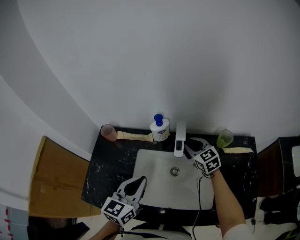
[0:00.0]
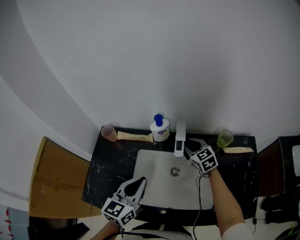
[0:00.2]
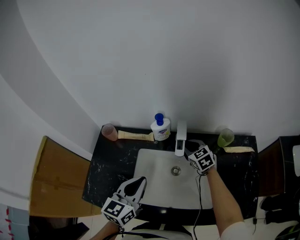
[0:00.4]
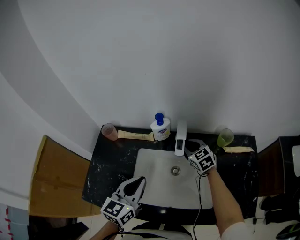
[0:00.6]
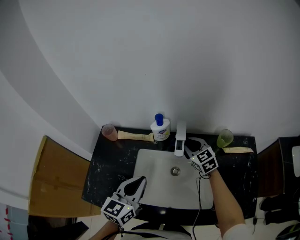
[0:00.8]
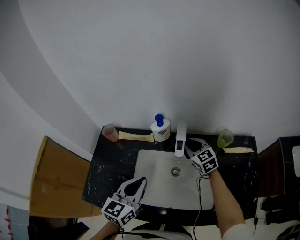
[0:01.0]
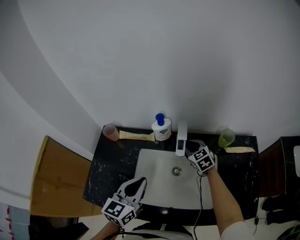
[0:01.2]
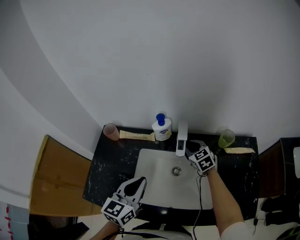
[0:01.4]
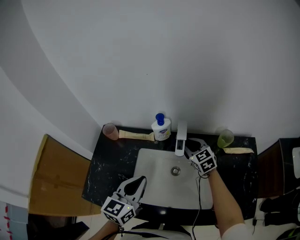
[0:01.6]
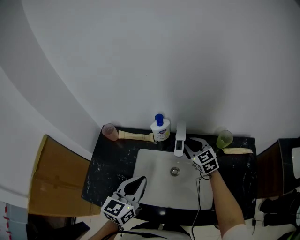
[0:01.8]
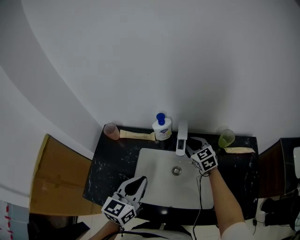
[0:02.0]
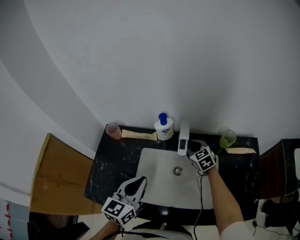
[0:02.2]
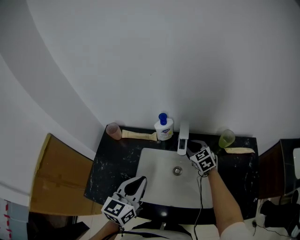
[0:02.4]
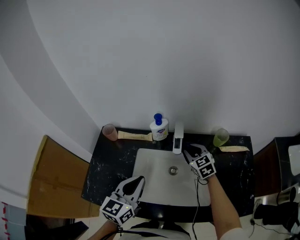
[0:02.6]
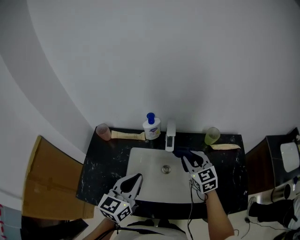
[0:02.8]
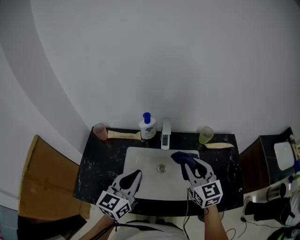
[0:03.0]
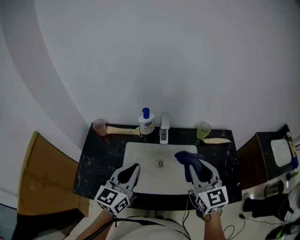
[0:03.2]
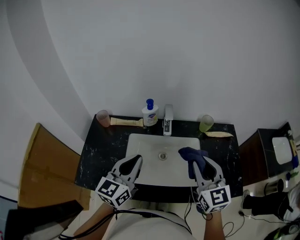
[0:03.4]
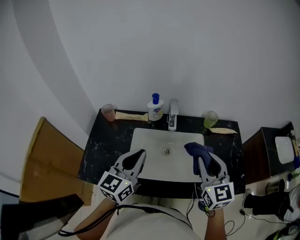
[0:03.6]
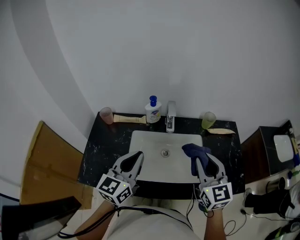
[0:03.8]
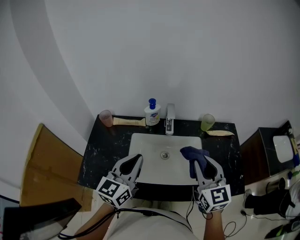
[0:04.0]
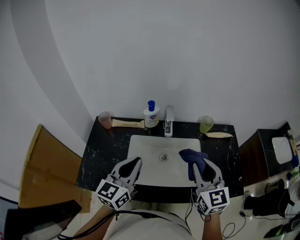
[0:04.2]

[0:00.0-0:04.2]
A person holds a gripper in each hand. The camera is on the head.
0:00.0 to 0:01.4: The right gripper goes up and down, about 5 cm each way, reversing 2 times.
0:01.4 to 0:02.8: The right gripper goes approximately 15 cm backward and upward.
0:02.8 to 0:04.2: The left gripper moves about 5 cm, while the right gripper is displaced backward and upward by some 20 cm.

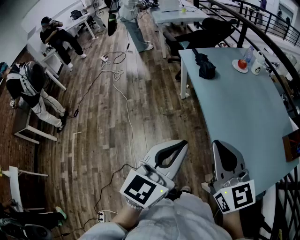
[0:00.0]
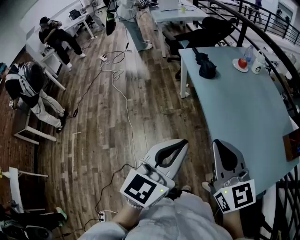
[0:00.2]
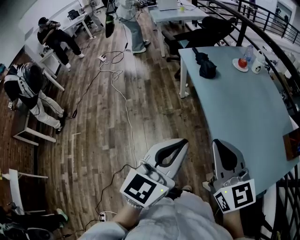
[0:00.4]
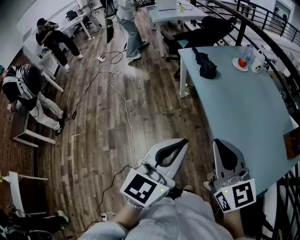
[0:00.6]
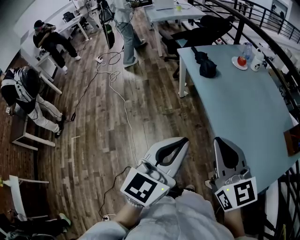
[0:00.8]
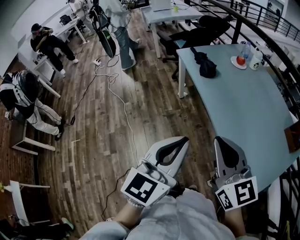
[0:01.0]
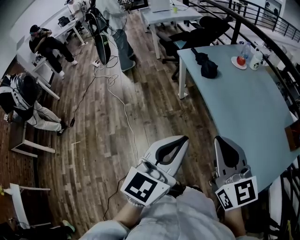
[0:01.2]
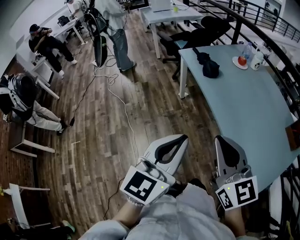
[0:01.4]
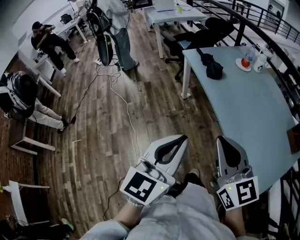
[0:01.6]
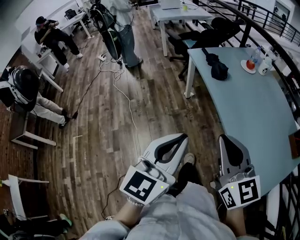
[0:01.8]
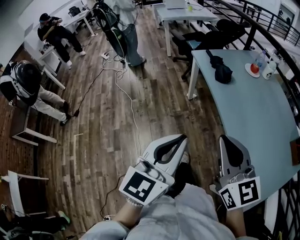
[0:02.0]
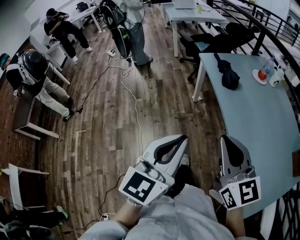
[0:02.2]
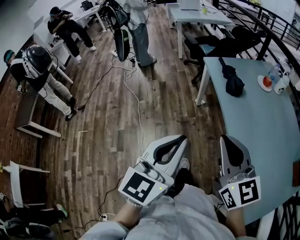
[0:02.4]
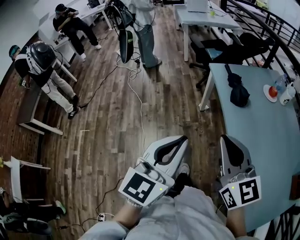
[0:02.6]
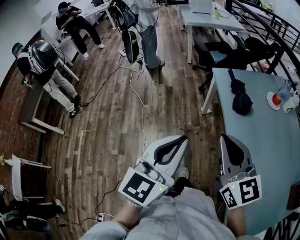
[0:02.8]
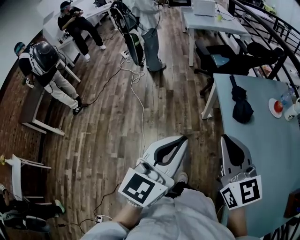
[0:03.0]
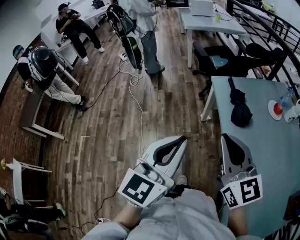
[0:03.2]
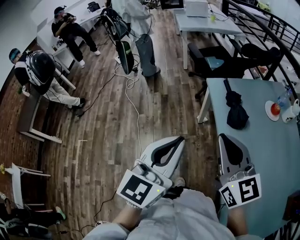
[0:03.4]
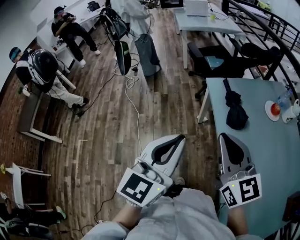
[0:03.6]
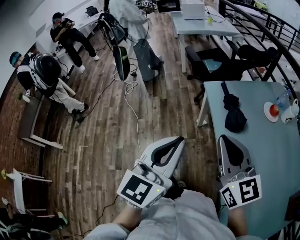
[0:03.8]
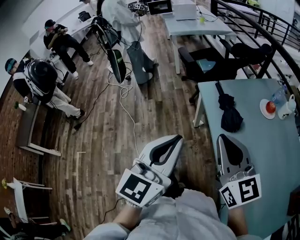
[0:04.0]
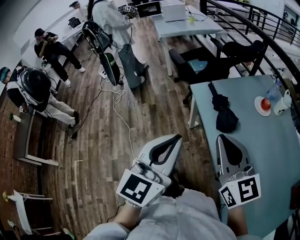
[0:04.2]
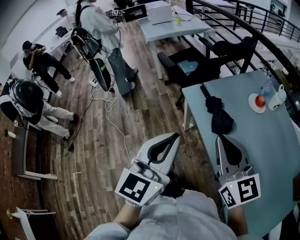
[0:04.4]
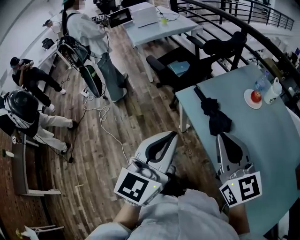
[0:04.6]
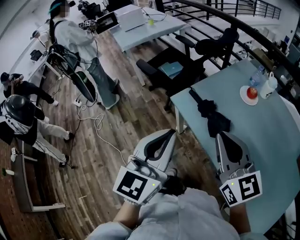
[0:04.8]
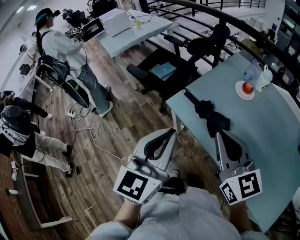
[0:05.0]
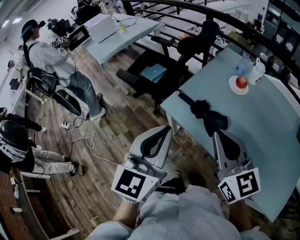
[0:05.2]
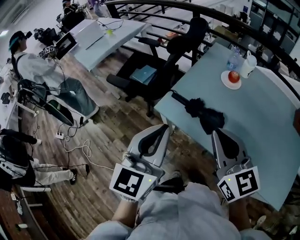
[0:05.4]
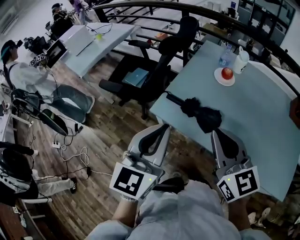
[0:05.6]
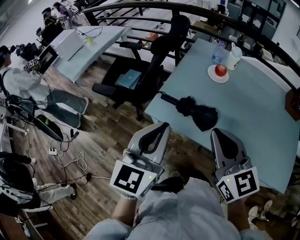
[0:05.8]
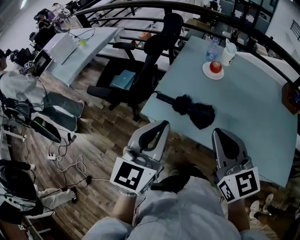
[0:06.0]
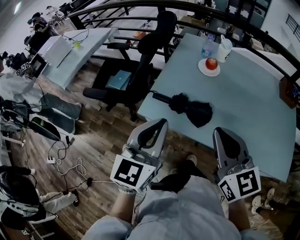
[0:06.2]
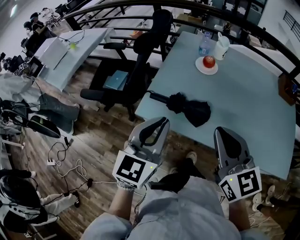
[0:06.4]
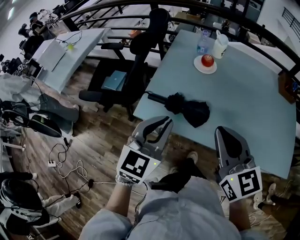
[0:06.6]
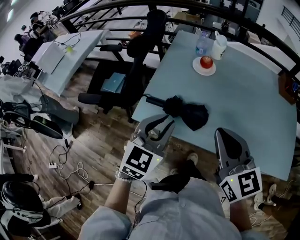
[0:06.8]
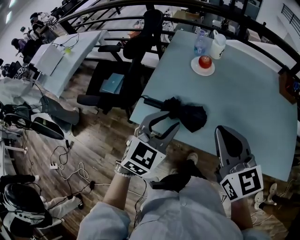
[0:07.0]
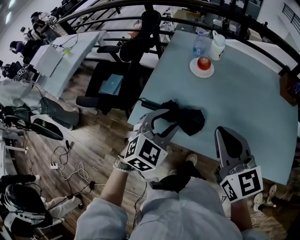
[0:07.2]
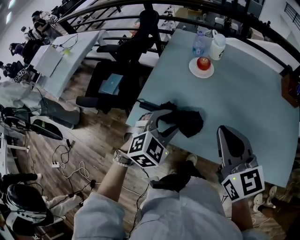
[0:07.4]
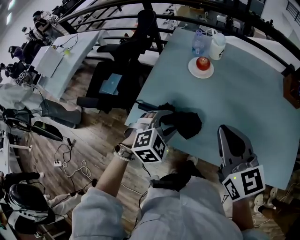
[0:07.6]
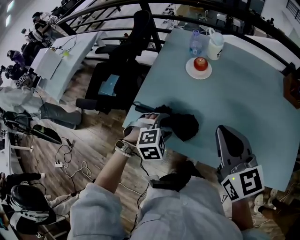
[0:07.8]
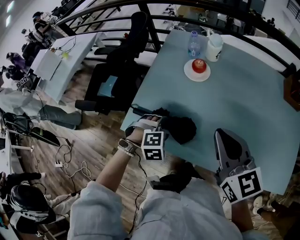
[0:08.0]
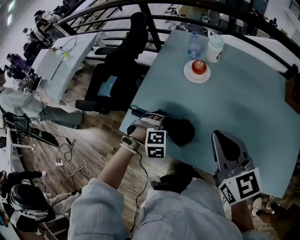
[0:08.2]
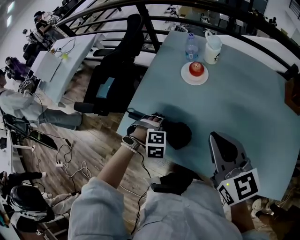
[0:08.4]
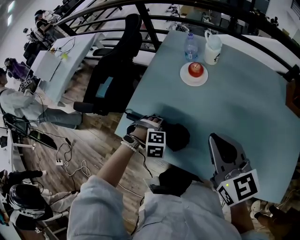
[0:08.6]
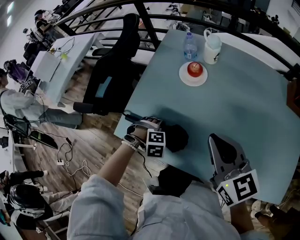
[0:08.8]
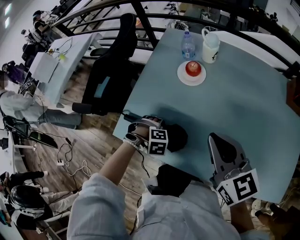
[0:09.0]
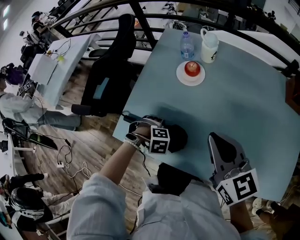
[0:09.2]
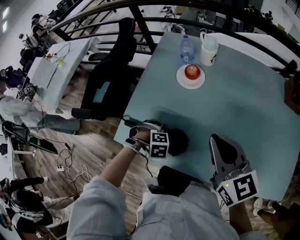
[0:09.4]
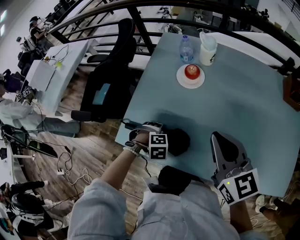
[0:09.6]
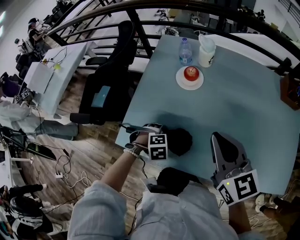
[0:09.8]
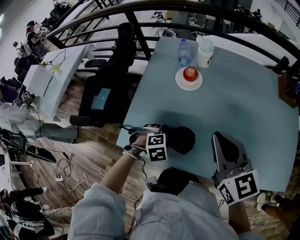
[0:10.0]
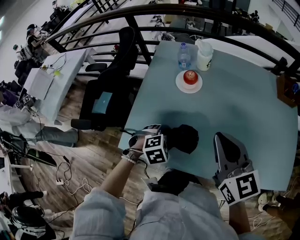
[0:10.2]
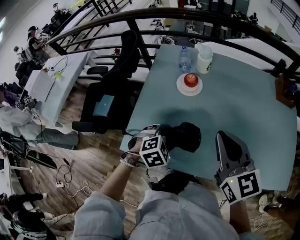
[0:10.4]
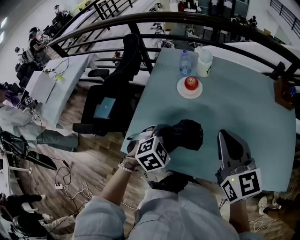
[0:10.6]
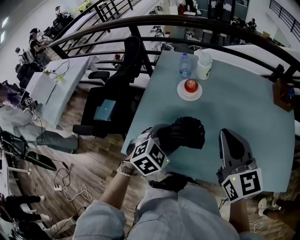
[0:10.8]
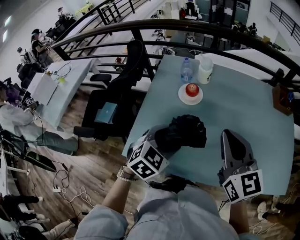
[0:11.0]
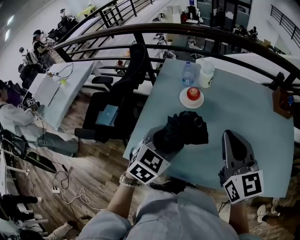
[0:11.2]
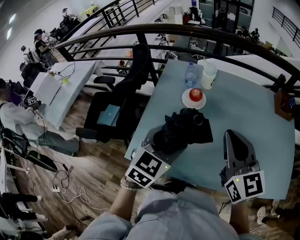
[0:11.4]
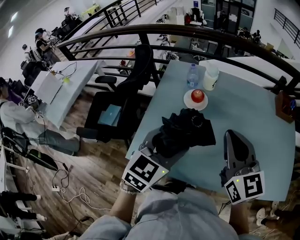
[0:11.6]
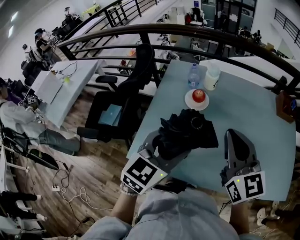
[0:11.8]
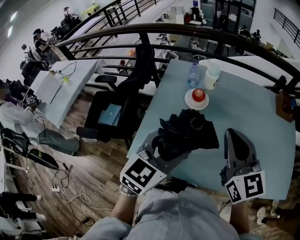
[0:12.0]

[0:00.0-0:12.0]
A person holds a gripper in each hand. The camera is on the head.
0:00.0 to 0:01.6: Both grippers travel together to the left, some 10 cm.
0:01.6 to 0:03.0: Both grippers move forward, some 25 cm.
0:03.0 to 0:04.4: The left gripper goes roughly 15 cm forward. Meanwhile the right gripper goes about 15 cm forward and to the right.
0:04.4 to 0:06.0: The left gripper shifts by some 20 cm, and rotates some 40 degrees, while the right gripper ends up approximately 10 cm from where it was, and swivels approximately 40 degrees.
0:06.0 to 0:07.6: The right gripper moves forward and to the right, some 15 cm, while the left gripper travels downward, forward and to the right by approximately 25 cm, angles its fingers downward, by some 40 degrees, and opens its fingers.
0:07.6 to 0:09.0: The right gripper ends up roughly 10 cm from where it was. The left gripper shifts approximately 15 cm downward, tips its fingers downward by roughly 40 degrees, and opens.
0:09.0 to 0:10.4: The left gripper is displaced upward by approximately 10 cm, and swivels roughly 30 degrees.
0:10.4 to 0:12.0: The right gripper shifts approximately 5 cm upward. The left gripper moves upward, about 20 cm, and tips its fingers upward by approximately 50 degrees.

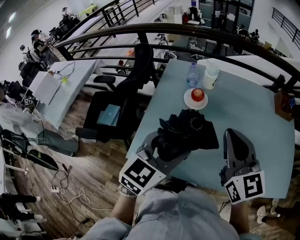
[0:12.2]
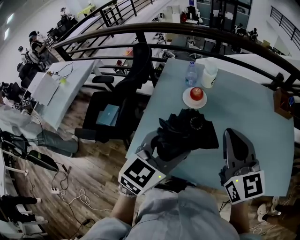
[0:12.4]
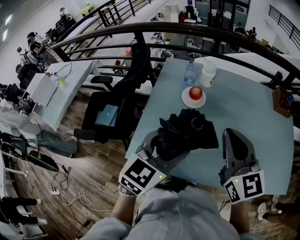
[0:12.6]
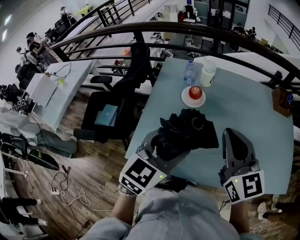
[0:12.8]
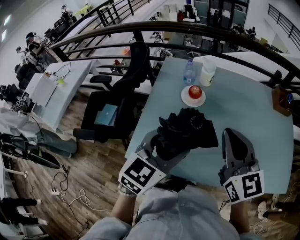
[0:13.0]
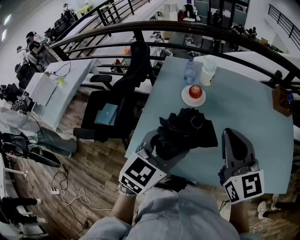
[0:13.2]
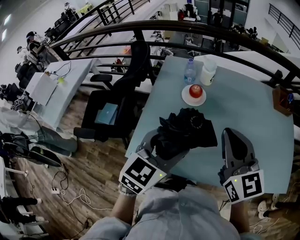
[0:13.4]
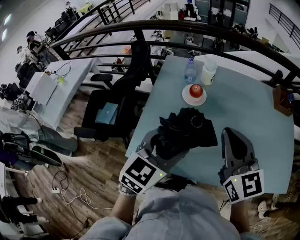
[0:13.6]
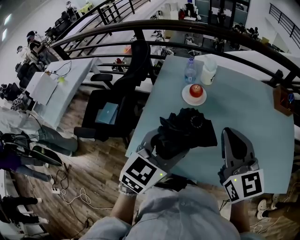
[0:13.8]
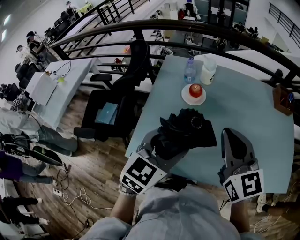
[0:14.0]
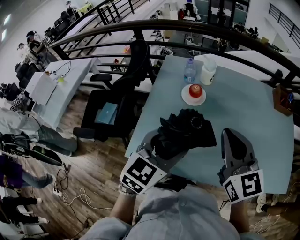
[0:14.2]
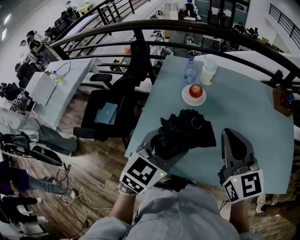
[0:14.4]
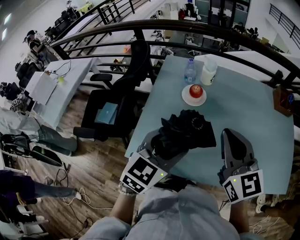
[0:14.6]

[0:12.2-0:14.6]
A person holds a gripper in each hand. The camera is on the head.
0:12.2 to 0:13.4: The two grippers keep their place.
0:13.4 to 0:14.6: The grippers stay close to where they were, moving slightly.

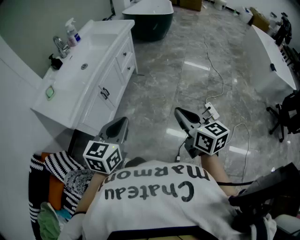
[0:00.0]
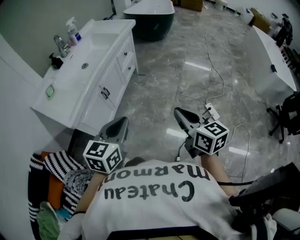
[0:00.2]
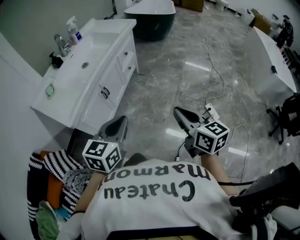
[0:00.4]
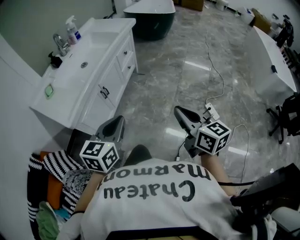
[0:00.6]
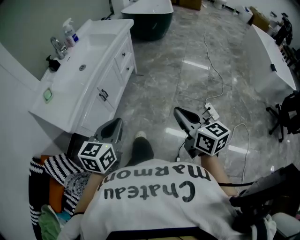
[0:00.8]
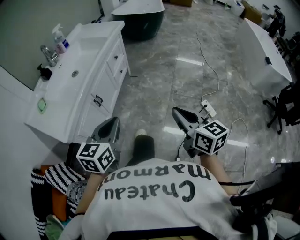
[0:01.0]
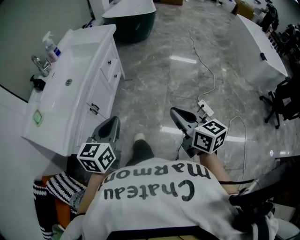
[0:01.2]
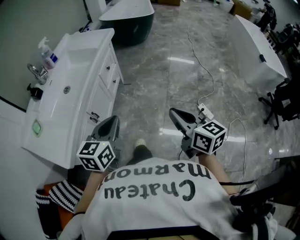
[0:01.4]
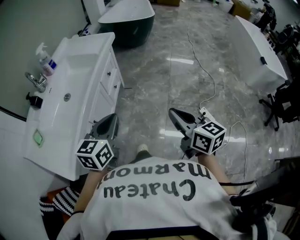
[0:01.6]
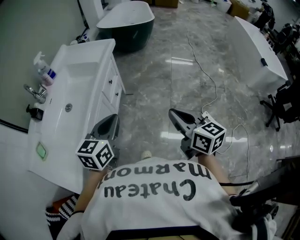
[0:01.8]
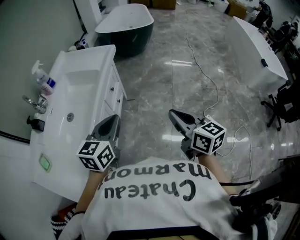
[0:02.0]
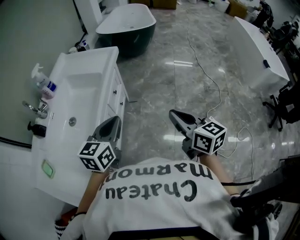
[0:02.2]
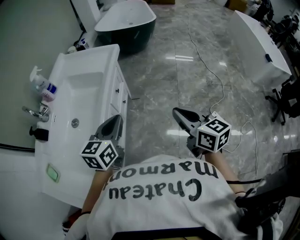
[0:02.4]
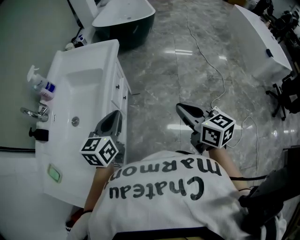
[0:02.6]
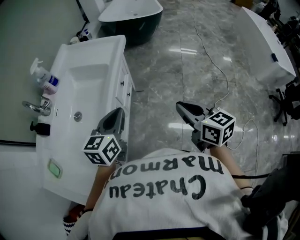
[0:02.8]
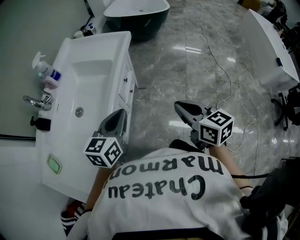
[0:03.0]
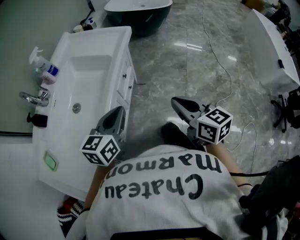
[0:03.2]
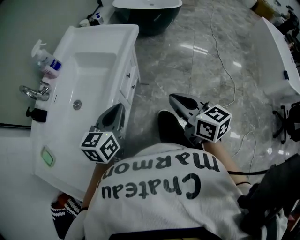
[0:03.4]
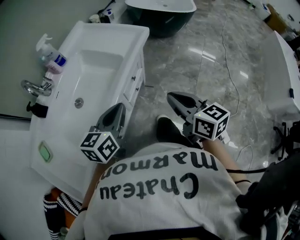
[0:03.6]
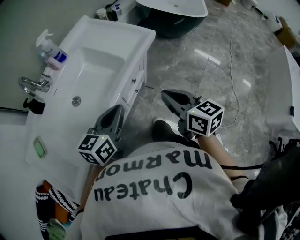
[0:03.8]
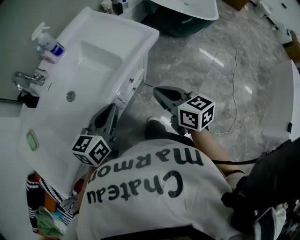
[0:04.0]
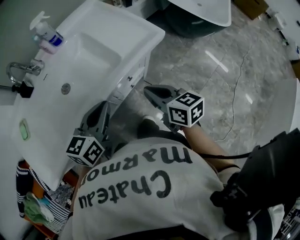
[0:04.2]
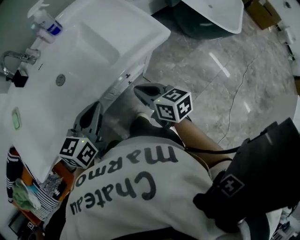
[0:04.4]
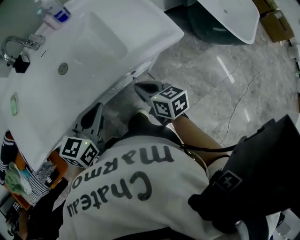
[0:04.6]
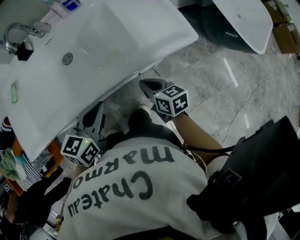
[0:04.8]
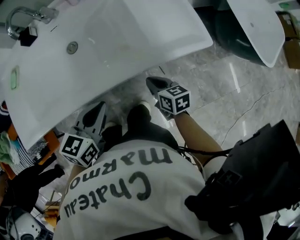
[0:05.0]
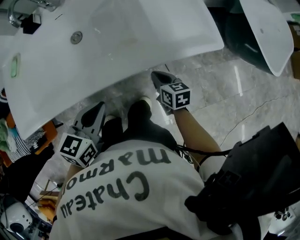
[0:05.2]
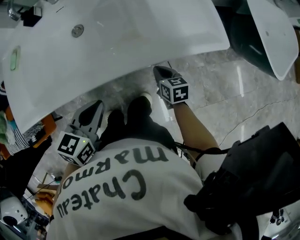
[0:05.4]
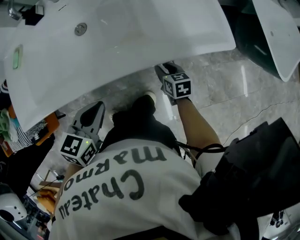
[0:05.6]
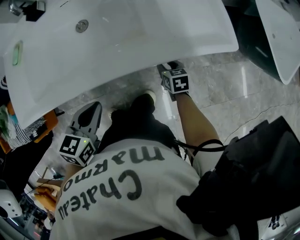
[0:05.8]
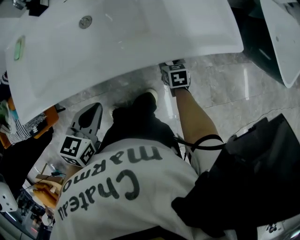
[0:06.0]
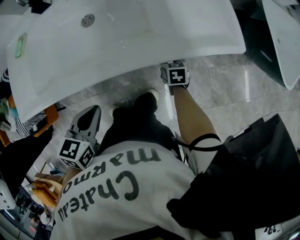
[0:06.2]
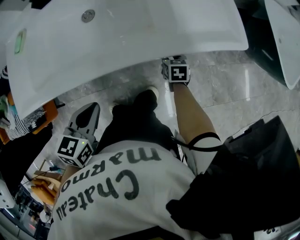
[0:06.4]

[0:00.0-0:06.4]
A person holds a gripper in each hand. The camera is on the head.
0:00.0 to 0:01.6: Both grippers move forward, some 20 cm.
0:01.6 to 0:03.2: Both grippers travel together forward and to the left, roughly 25 cm.
0:03.2 to 0:04.8: The left gripper moves approximately 15 cm, and swivels approximately 50 degrees. Meanwhile the right gripper moves some 35 cm, and changes its angle by roughly 60 degrees.
0:04.8 to 0:06.4: The left gripper moves to the left, backward and downward, about 10 cm, and rotates some 20 degrees; the right gripper shifts some 20 cm downward and forward, turns by about 20 degrees, and opens.
